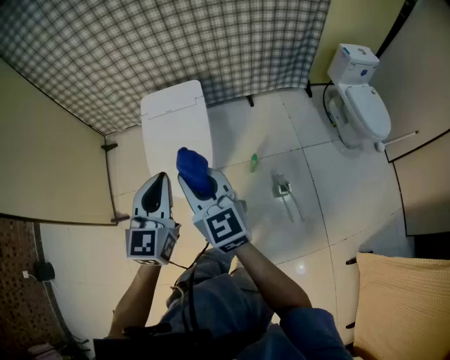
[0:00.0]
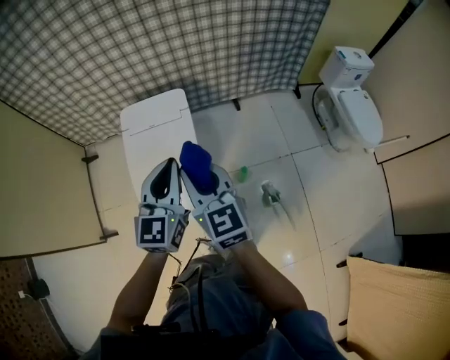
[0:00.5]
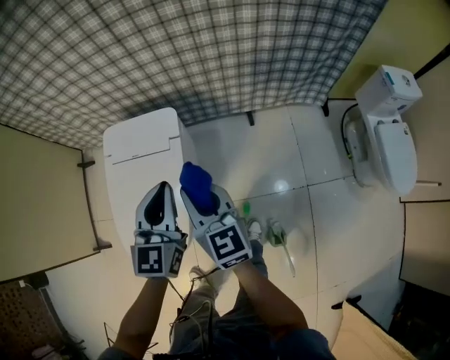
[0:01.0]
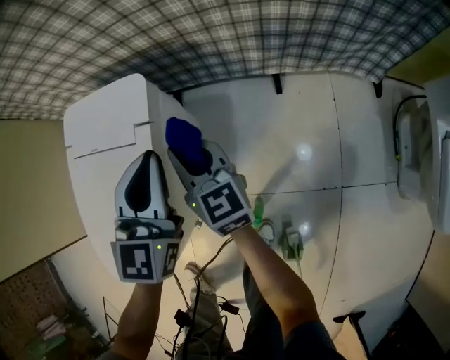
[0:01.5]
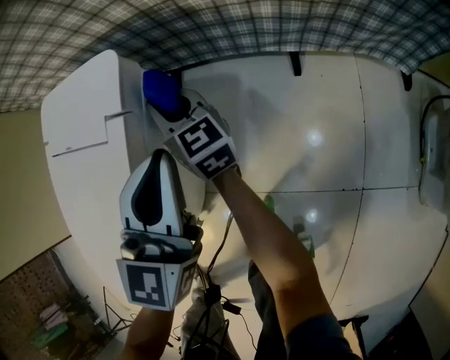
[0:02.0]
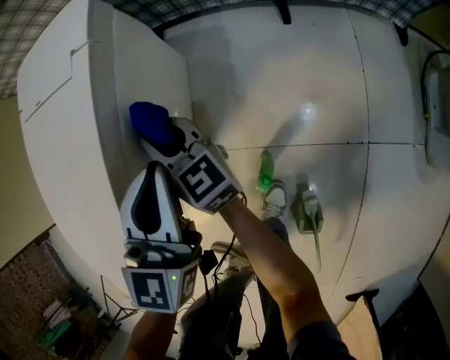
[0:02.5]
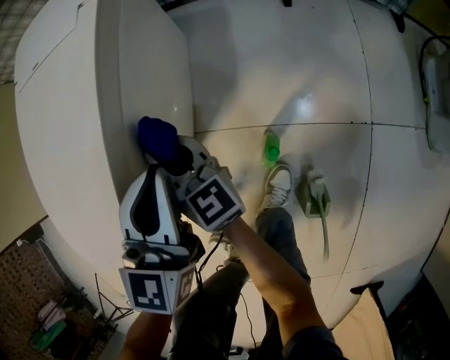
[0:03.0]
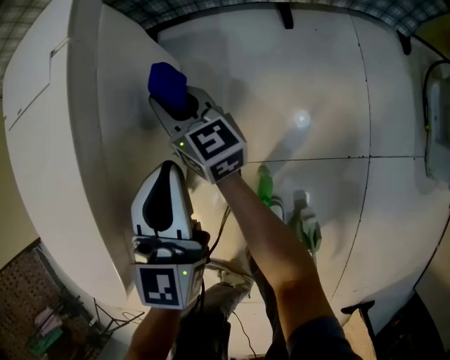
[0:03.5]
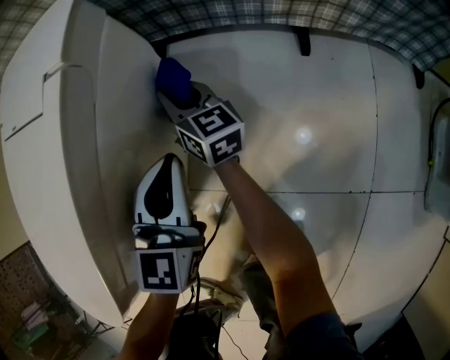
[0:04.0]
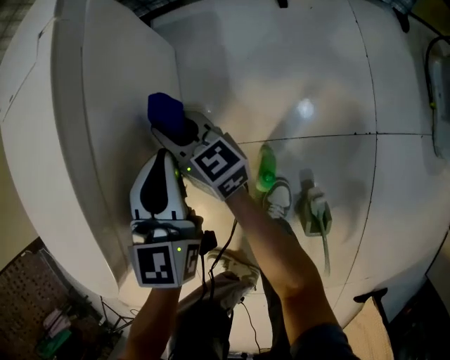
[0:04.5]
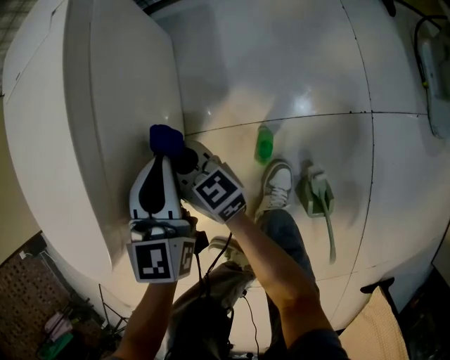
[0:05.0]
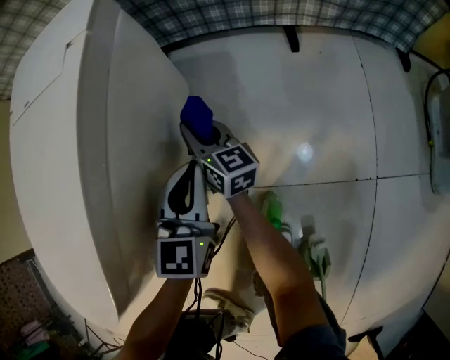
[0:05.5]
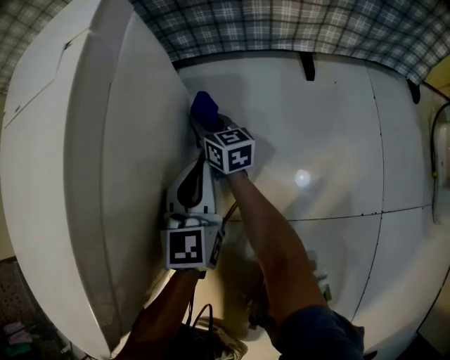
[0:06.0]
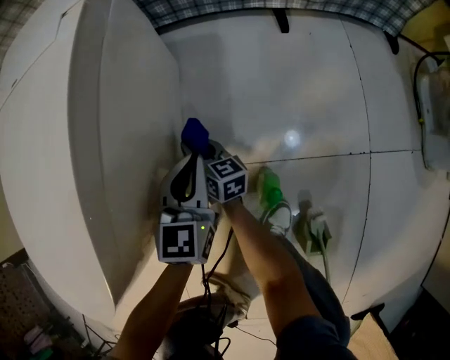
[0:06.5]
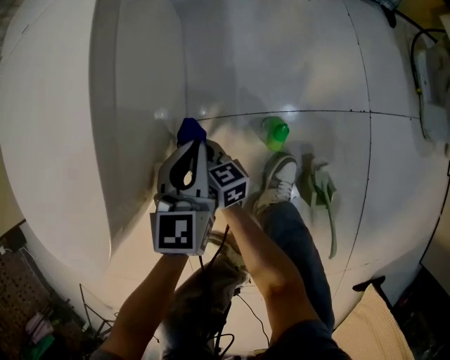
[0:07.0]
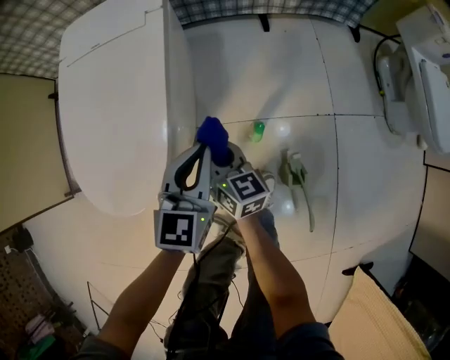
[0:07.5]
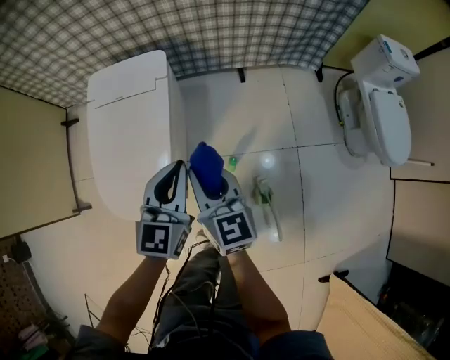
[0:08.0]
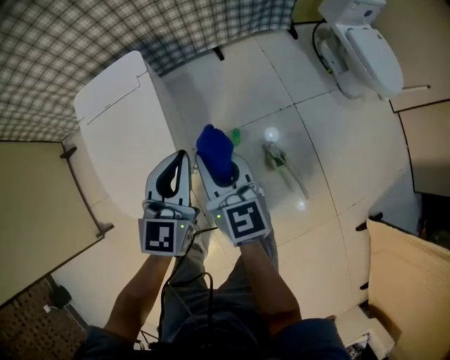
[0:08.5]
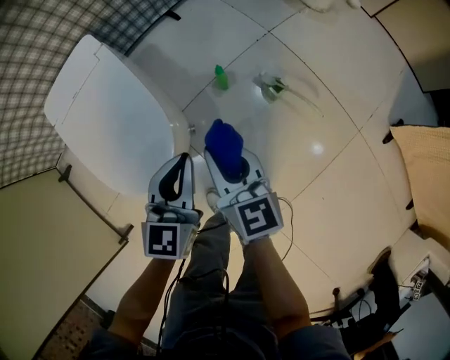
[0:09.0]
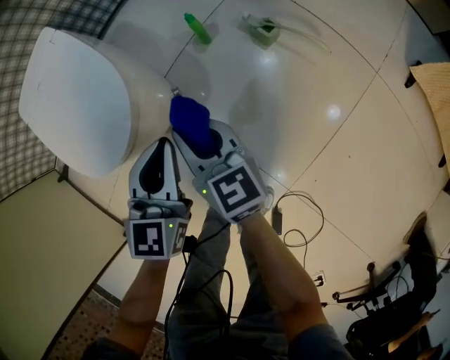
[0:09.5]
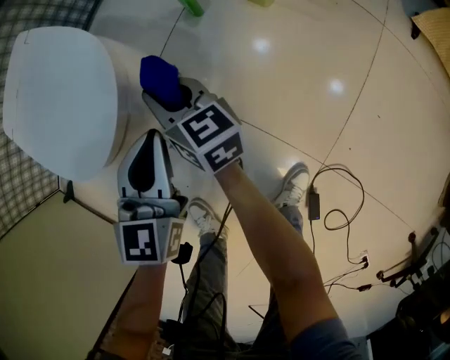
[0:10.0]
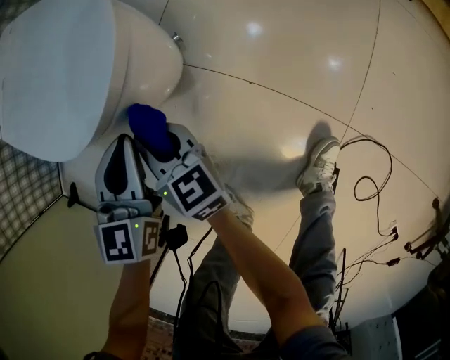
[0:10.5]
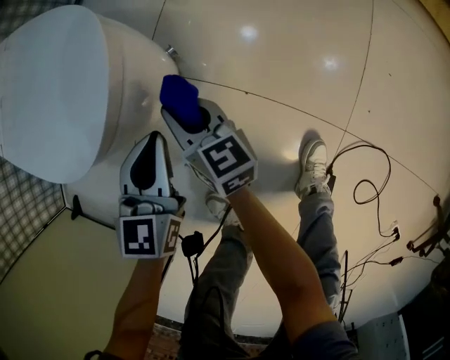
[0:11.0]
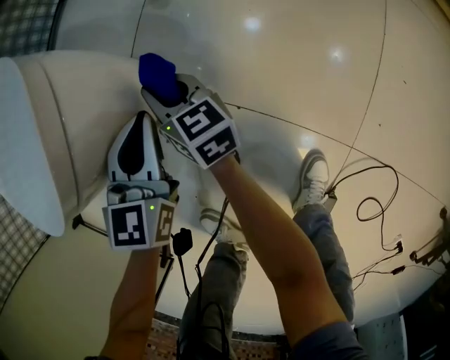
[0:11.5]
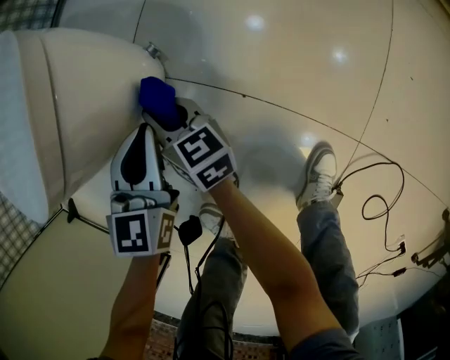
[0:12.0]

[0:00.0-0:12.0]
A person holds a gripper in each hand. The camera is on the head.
0.0 to 2.0 s: The pair of grippers is taken forward and to the right, approximately 60 cm. The two grippers go approximately 50 cm downward. The right gripper turns by some 30 degrees.
2.0 to 4.0 s: Both grippers move downward, roughly 20 cm. The right gripper moves roughly 30 cm backward and comes back.
4.0 to 6.0 s: Both grippers move downward, approximately 15 cm. The left gripper travels backward and back again, approximately 15 cm each way; the right gripper travels backward and back again, approximately 30 cm each way.
6.0 to 8.0 s: Both grippers move upward and backward, roughly 60 cm. The right gripper rotates roughly 20 degrees.
8.0 to 10.0 s: The right gripper goes roughly 30 cm downward, and rotates some 40 degrees. The left gripper ends up about 40 cm from where it was, and changes its angle by approximately 50 degrees.
10.0 to 12.0 s: Both grippers move downward, some 20 cm.

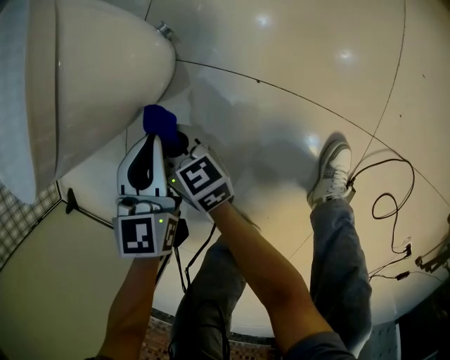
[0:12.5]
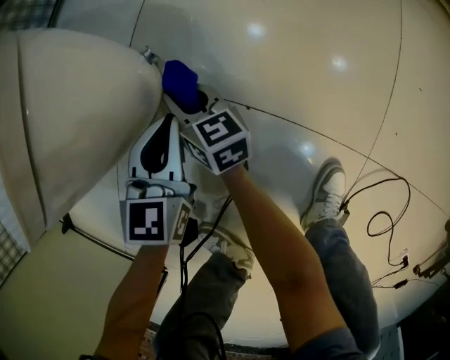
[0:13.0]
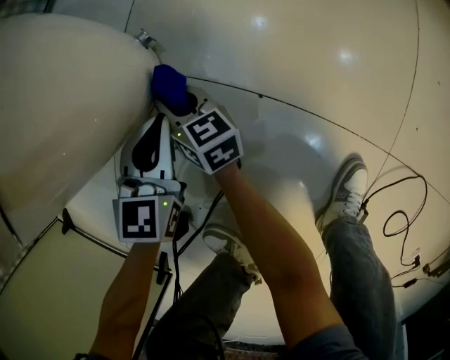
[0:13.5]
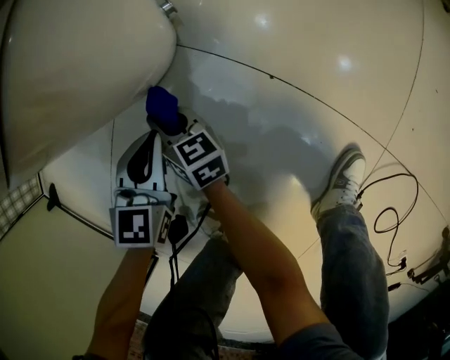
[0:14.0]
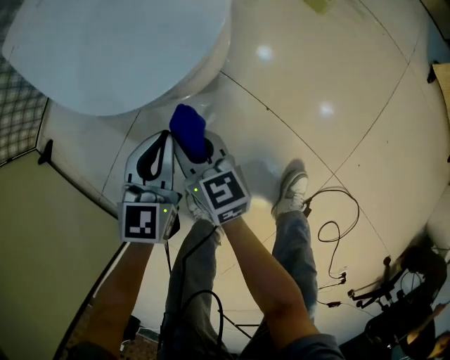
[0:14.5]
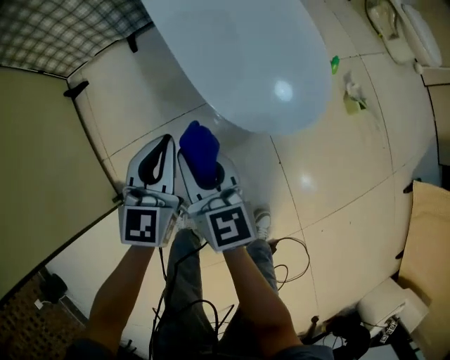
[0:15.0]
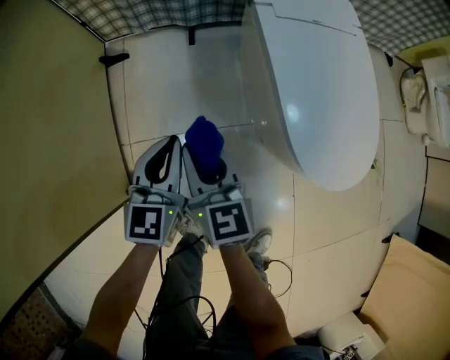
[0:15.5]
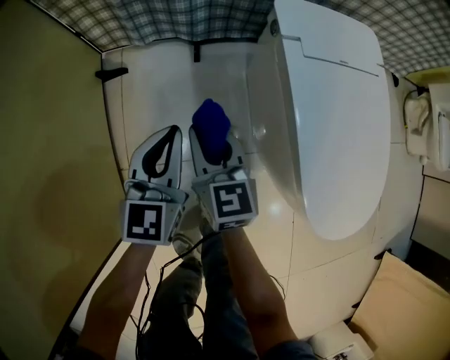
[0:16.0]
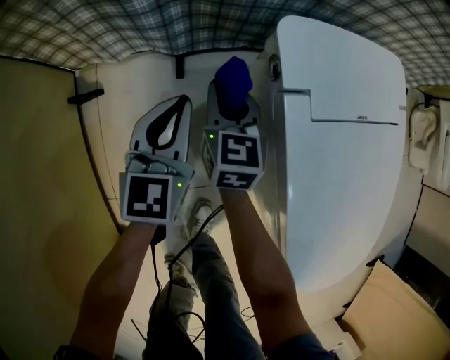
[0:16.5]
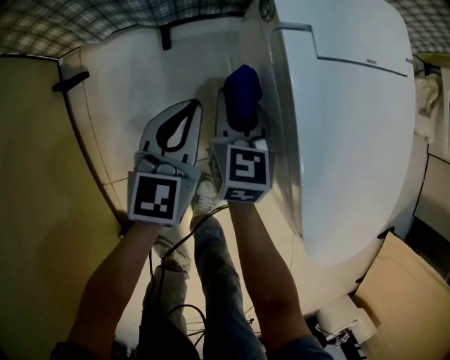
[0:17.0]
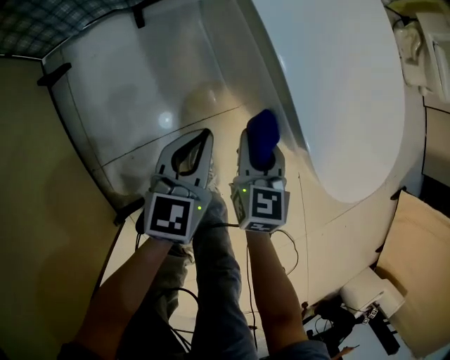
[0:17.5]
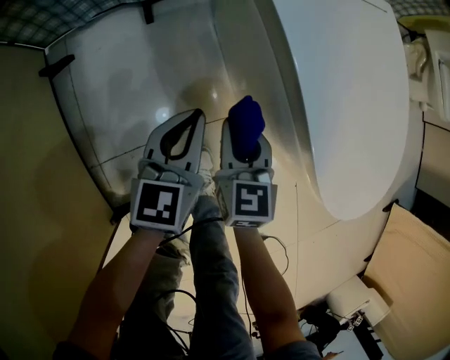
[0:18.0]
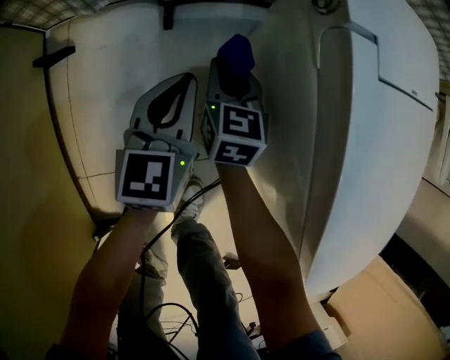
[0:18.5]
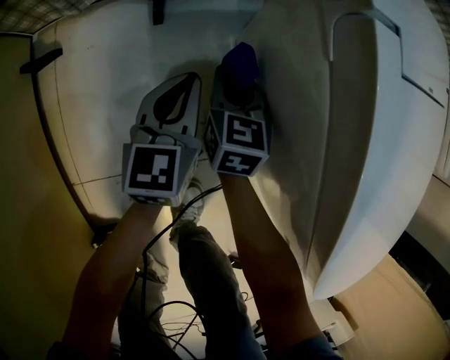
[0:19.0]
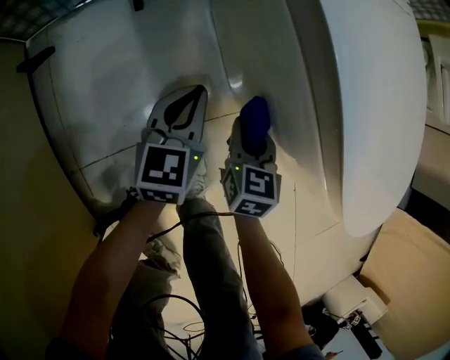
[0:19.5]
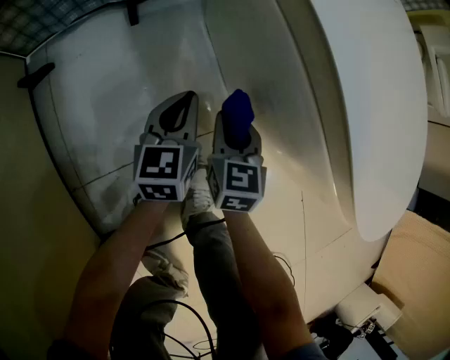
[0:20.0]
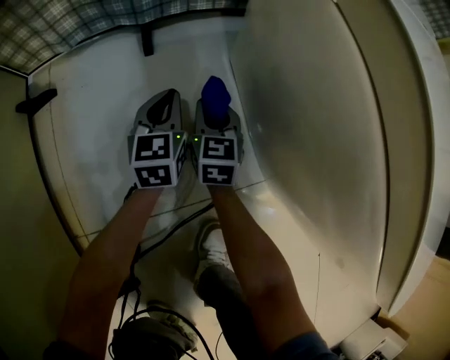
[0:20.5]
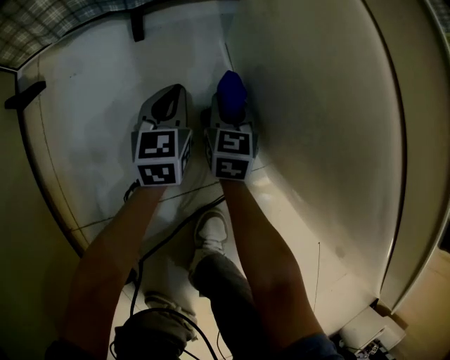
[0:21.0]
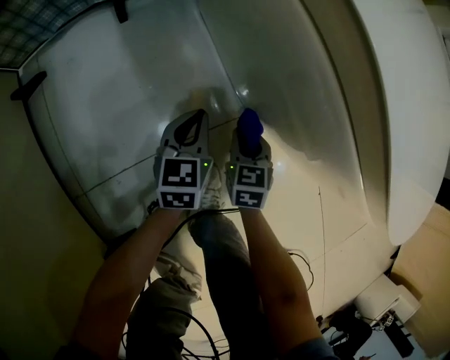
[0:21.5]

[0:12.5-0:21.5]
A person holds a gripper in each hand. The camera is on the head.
12.5 to 14.5 s: The right gripper goes some 15 cm upward. The left gripper is displaced upward and to the left by roughly 10 cm.
14.5 to 17.0 s: The pair of grippers is taken approximately 50 cm. The left gripper swivels roughly 40 degrees. The right gripper swivels some 30 degrees.
17.0 to 19.5 s: The right gripper swings forward and backward, some 25 cm each way, with 2 reversals; the left gripper moves forward and backward over about 20 cm, changing direction 2 times.
19.5 to 21.5 s: The two grippers go approximately 15 cm downward. The right gripper goes forward and returns, some 20 cm each way, while the left gripper reaches approximately 15 cm forward, then returns.

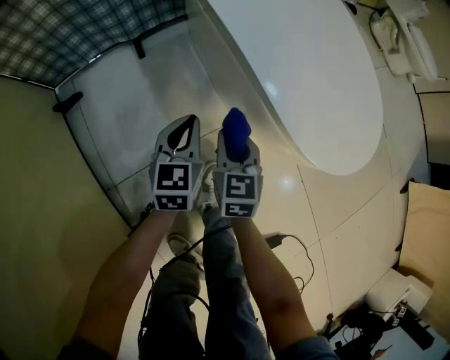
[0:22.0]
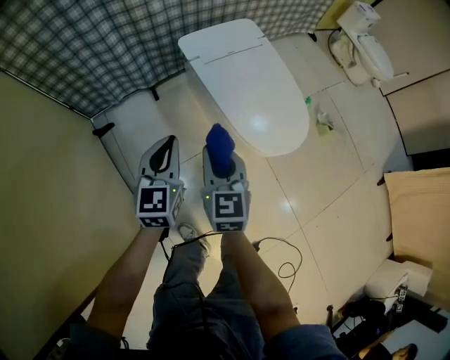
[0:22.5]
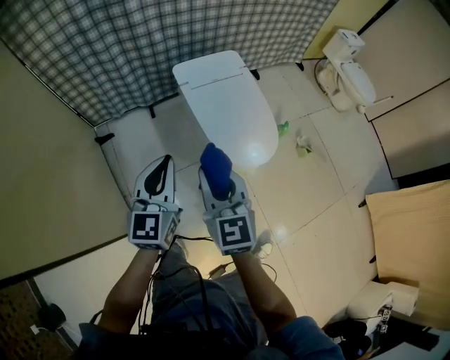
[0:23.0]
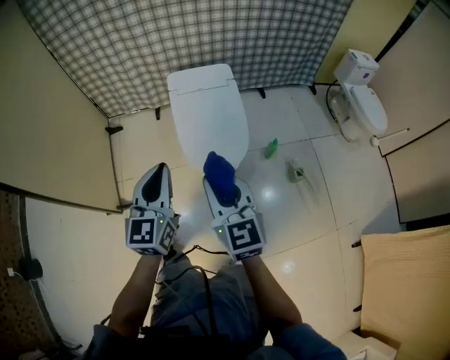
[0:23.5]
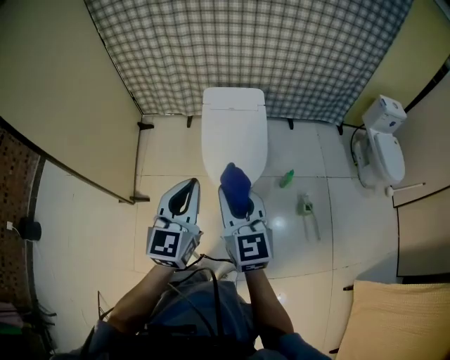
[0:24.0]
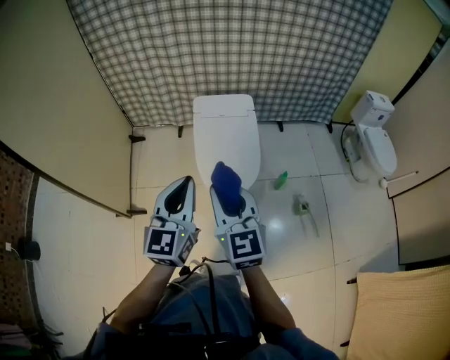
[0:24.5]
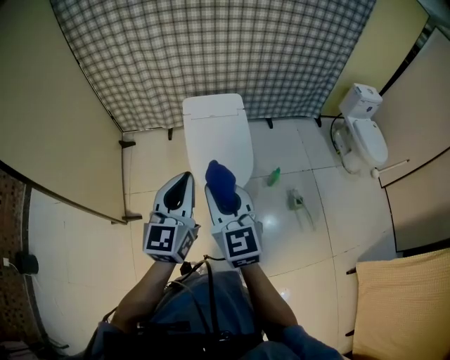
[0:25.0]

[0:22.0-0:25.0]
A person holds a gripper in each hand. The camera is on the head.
22.0 to 23.5 s: The two grippers go about 60 cm upward. The right gripper rotates about 40 degrees; the left gripper turns by roughly 30 degrees.
23.5 to 25.0 s: Both grippers move upward, roughly 10 cm.

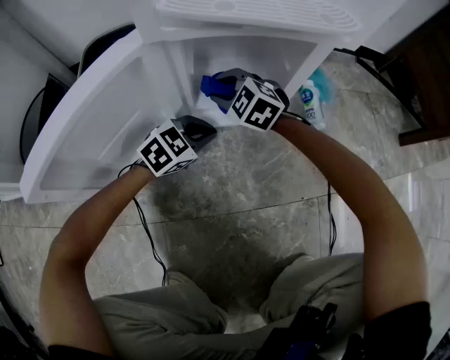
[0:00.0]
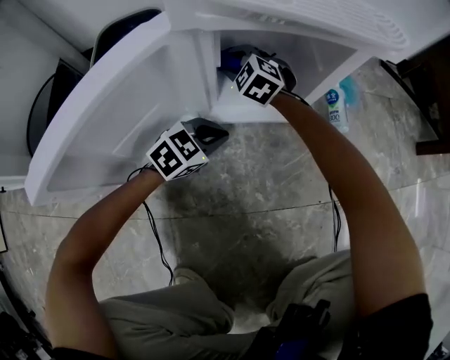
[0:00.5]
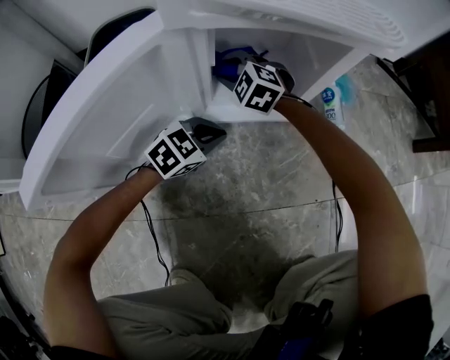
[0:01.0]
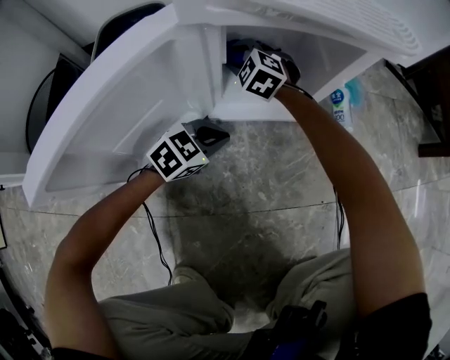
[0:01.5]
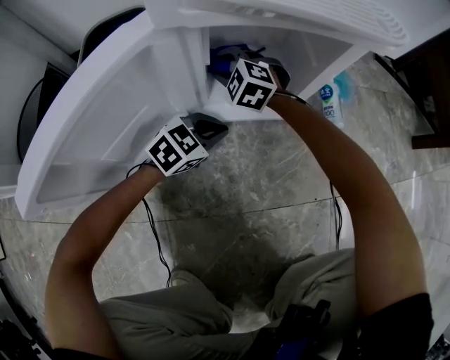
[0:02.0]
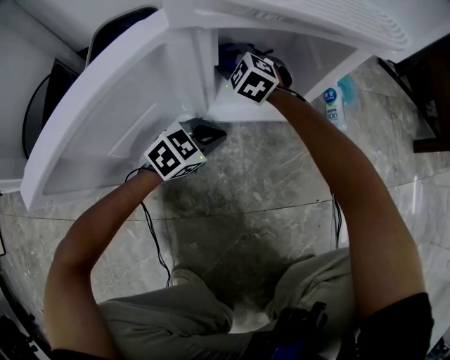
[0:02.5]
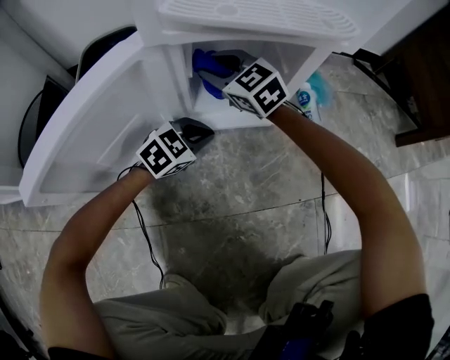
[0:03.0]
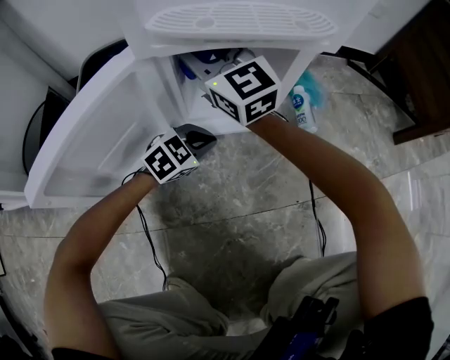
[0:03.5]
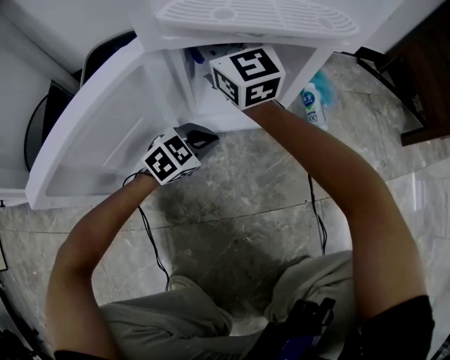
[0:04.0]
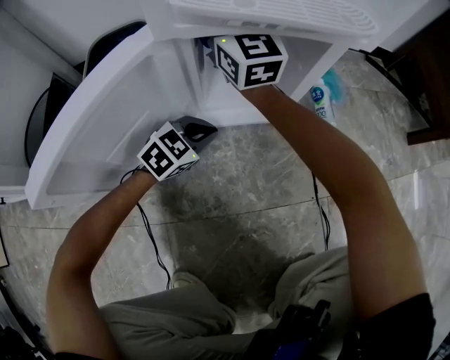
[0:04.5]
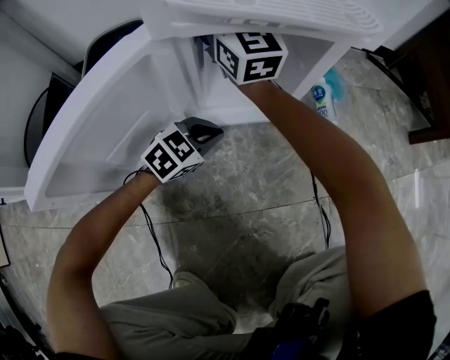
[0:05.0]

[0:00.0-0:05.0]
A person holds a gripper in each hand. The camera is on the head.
0.0 to 2.5 s: The right gripper travels forward and to the left by some 10 cm.
2.5 to 5.0 s: The right gripper goes roughly 25 cm upward, and tips its fingers upward by roughly 60 degrees.
